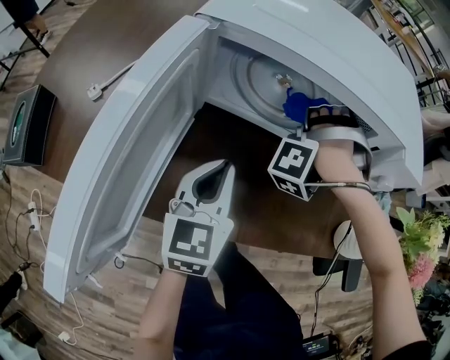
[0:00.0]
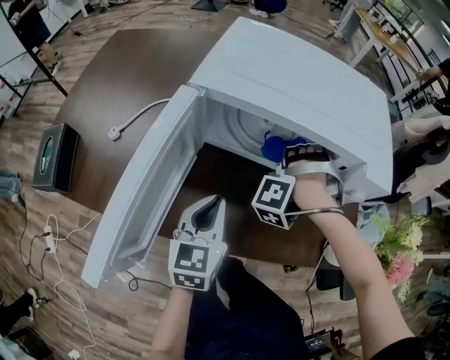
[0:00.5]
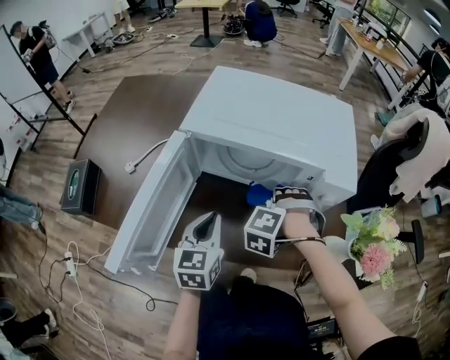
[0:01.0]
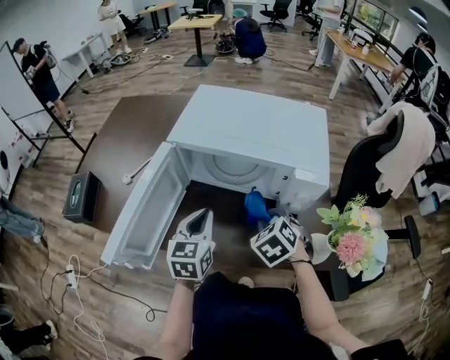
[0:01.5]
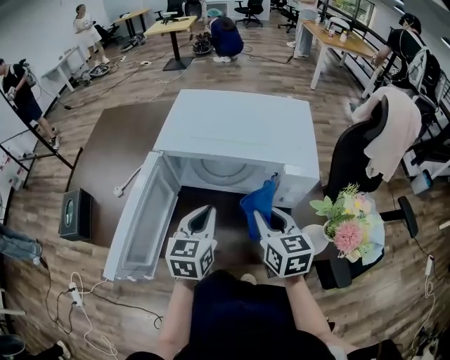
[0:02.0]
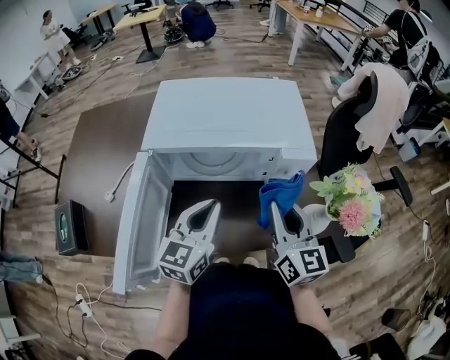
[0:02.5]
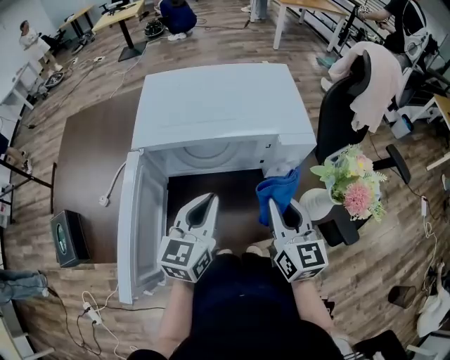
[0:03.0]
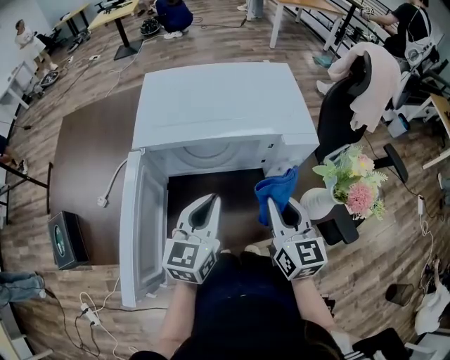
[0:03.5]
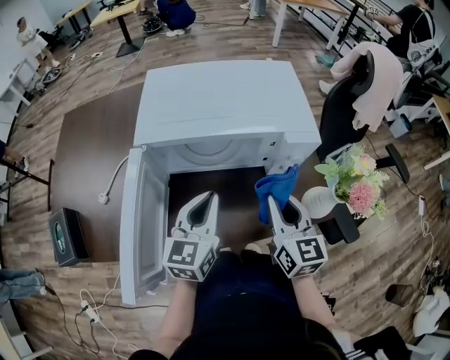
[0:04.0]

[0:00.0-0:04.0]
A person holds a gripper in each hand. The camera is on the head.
0:00.0 to 0:02.0: The left gripper goes approximately 10 cm upward.

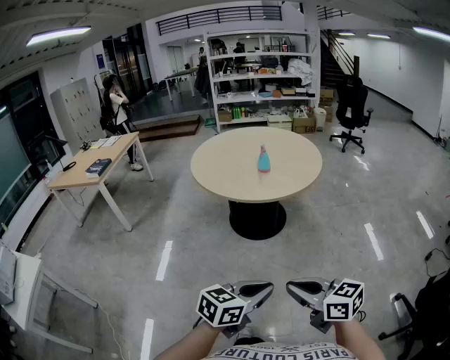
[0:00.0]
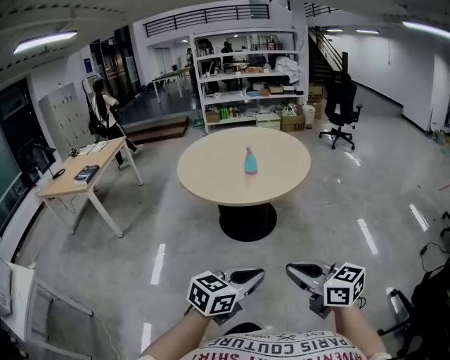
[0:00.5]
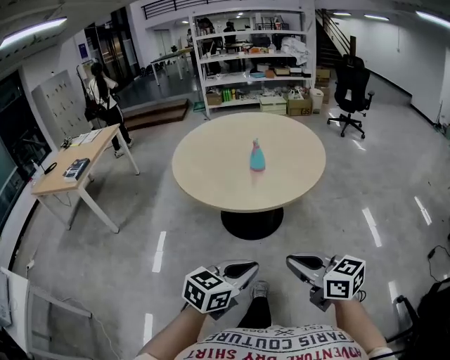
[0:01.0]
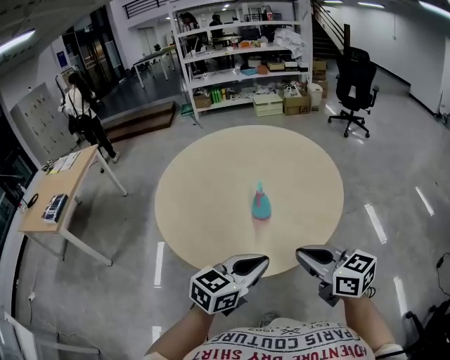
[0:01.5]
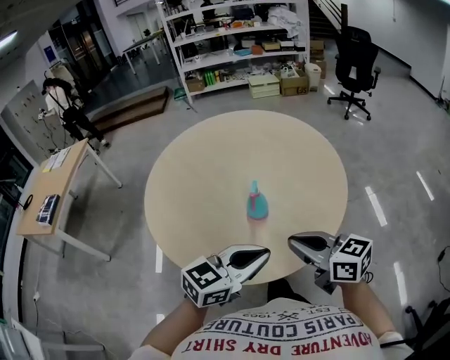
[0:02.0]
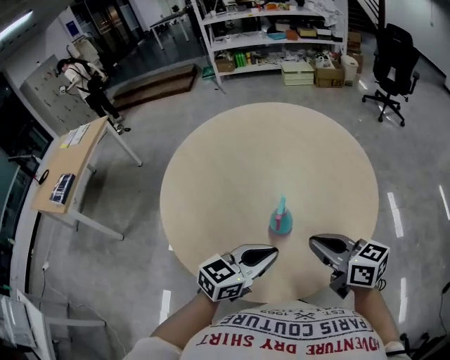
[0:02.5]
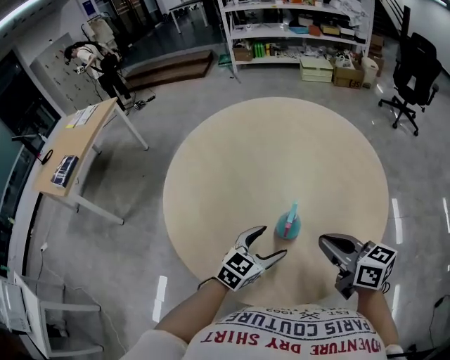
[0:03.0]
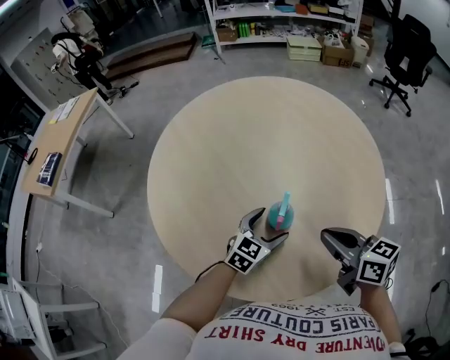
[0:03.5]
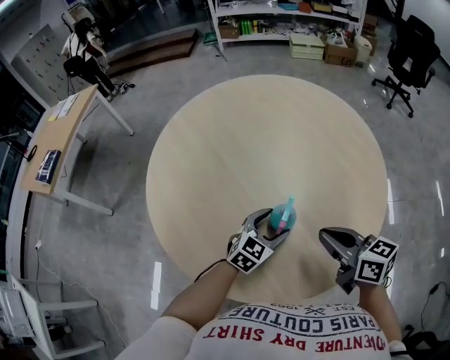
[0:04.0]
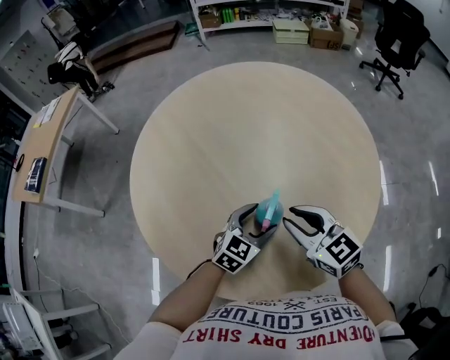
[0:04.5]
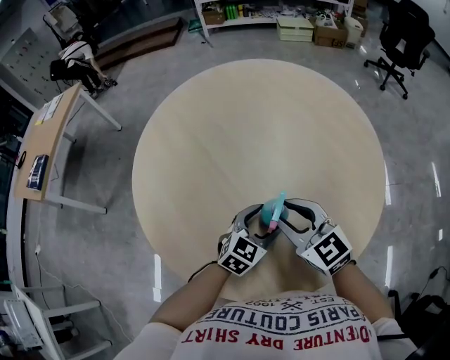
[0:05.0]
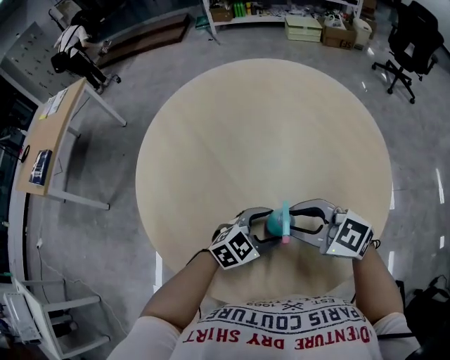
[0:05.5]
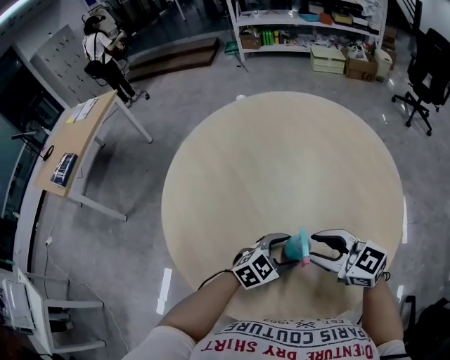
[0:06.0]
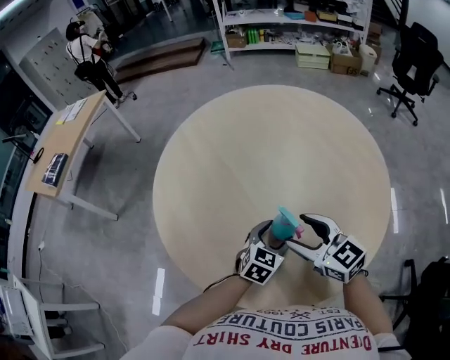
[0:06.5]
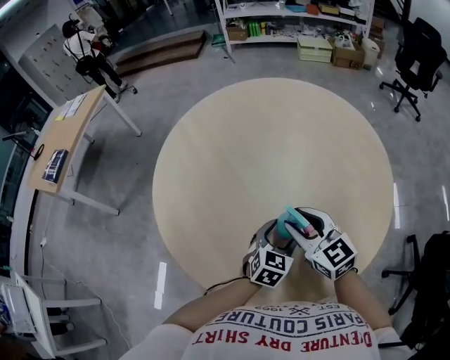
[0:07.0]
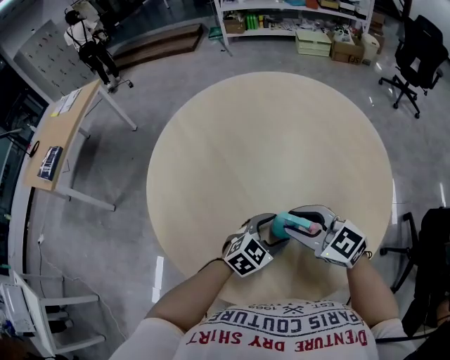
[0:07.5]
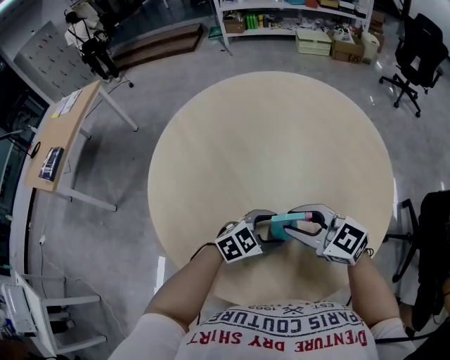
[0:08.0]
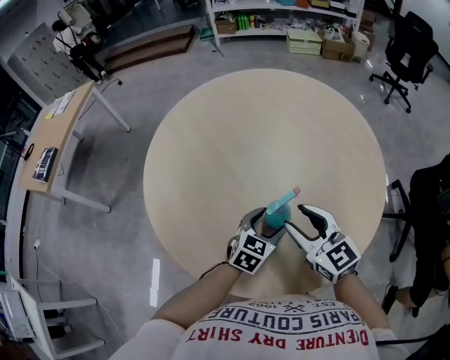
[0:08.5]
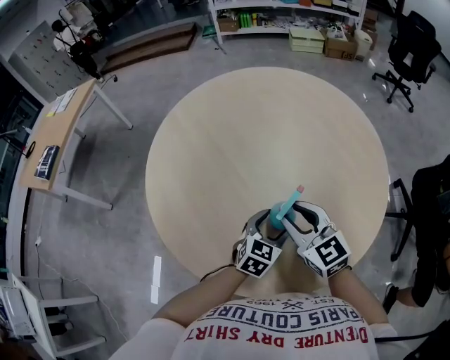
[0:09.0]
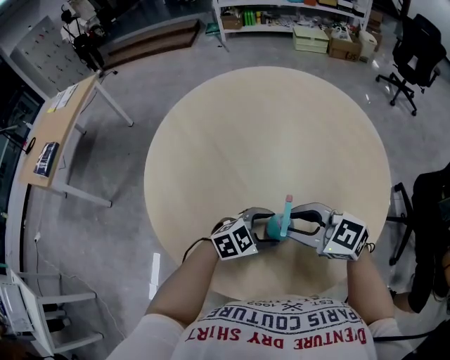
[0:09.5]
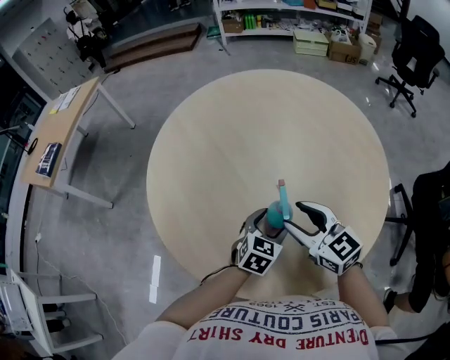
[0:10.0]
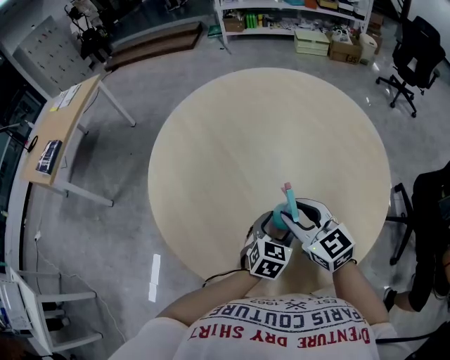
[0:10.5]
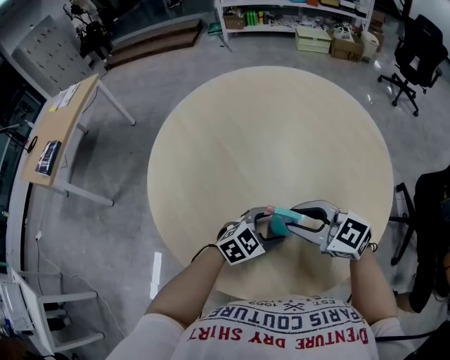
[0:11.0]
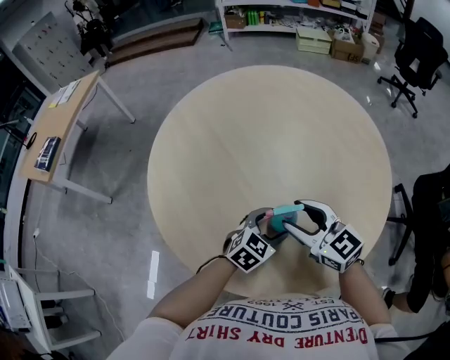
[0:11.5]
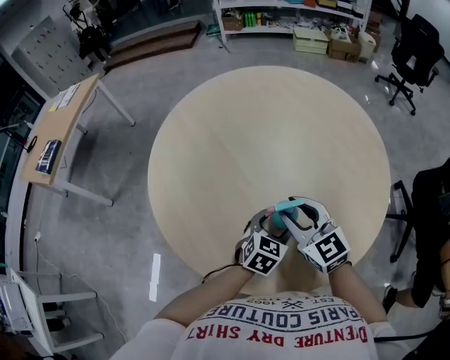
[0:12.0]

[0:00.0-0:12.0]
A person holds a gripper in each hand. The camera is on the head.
0:00.0 to 0:02.0: The pair of grippers is taken forward, about 60 cm.
0:02.0 to 0:04.0: The left gripper is displaced forward and downward by some 30 cm, rotates about 30 degrees, and opens its fingers, while the right gripper heads forward and downward, covering about 15 cm.
0:04.0 to 0:06.0: The right gripper ends up about 10 cm from where it was, swivels about 30 degrees, and opens its fingers.
0:06.0 to 0:08.0: The right gripper opens, then closes again.
0:08.0 to 0:10.0: The left gripper changes its angle by about 40 degrees.

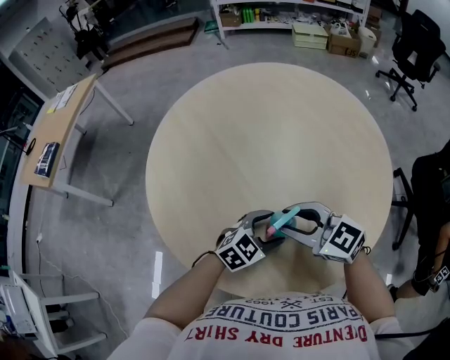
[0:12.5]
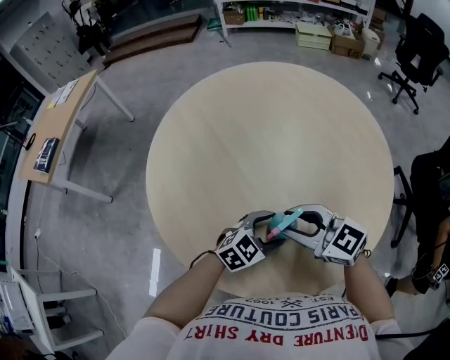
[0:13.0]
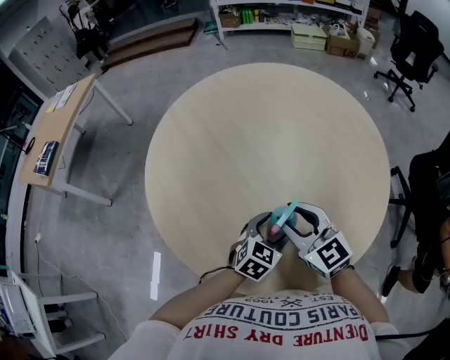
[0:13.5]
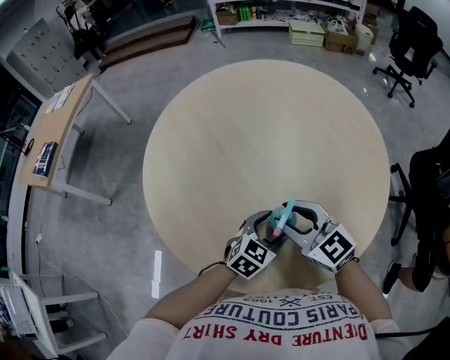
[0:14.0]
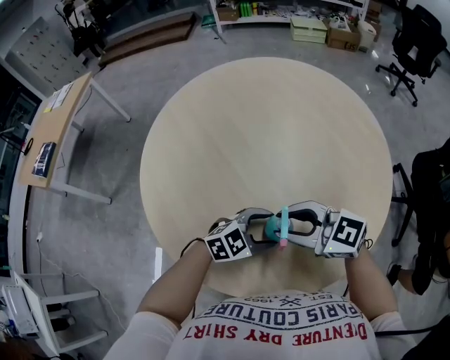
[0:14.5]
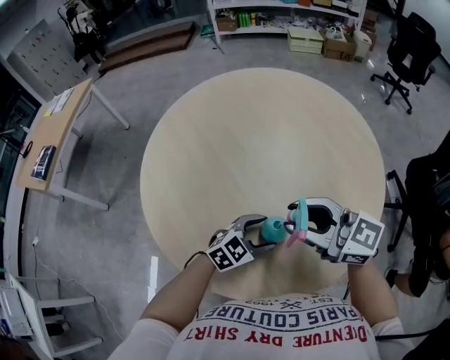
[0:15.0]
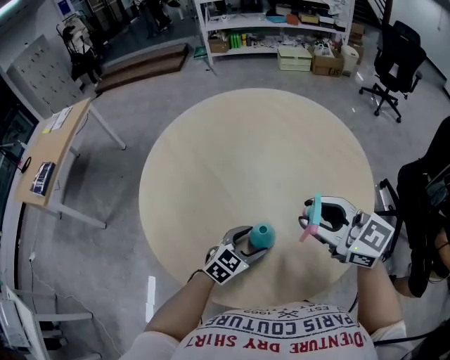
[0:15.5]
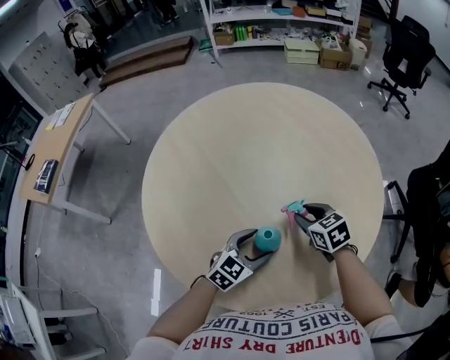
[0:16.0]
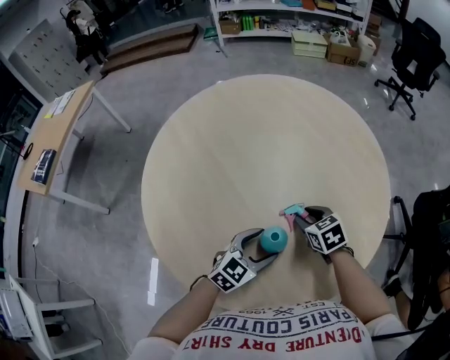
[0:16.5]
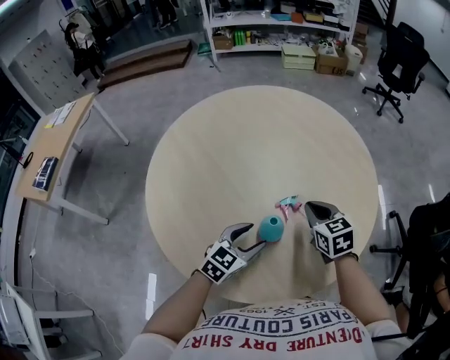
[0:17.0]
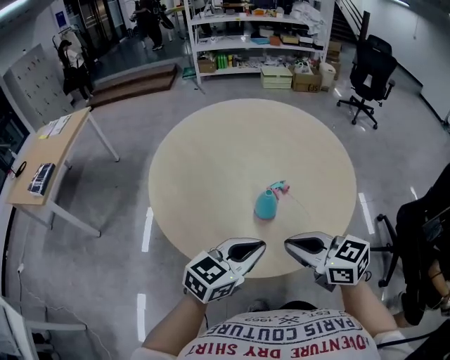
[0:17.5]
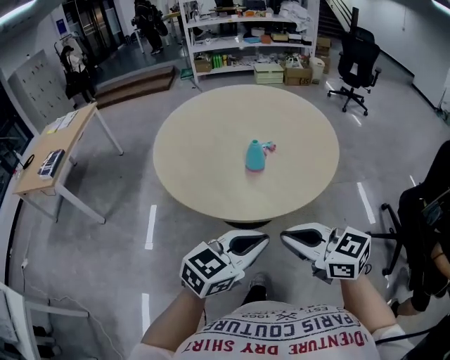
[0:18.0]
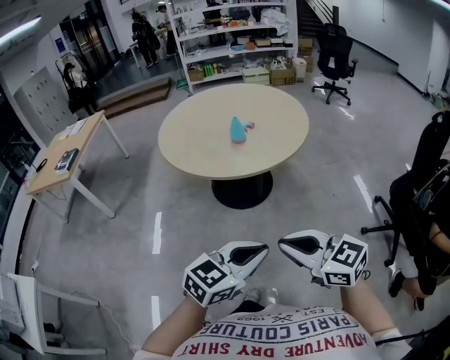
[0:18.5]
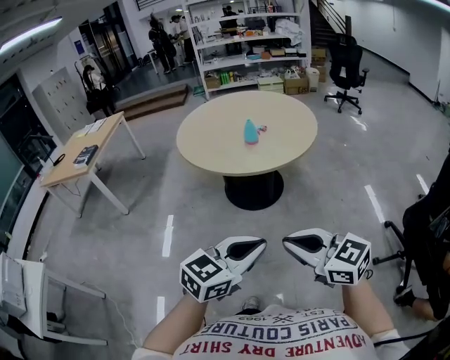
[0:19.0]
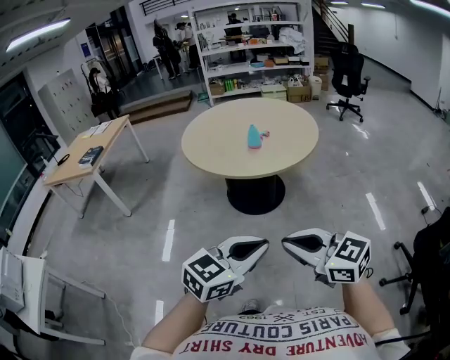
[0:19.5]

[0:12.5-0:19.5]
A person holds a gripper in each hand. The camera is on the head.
0:14.5 to 0:16.0: The right gripper ends up some 20 cm from where it was, and changes its angle by roughly 50 degrees. Meanwhile the left gripper changes its angle by approximately 30 degrees.
0:16.0 to 0:17.5: The left gripper travels upward and backward by roughly 25 cm, turns by some 20 degrees, and closes. The right gripper heads backward and upward, covering roughly 30 cm, rotates some 30 degrees, and closes.
0:17.5 to 0:19.5: The pair of grippers is taken backward, roughly 60 cm.

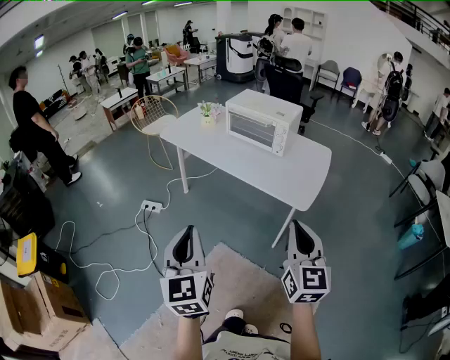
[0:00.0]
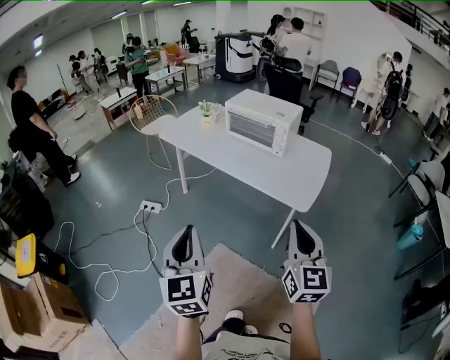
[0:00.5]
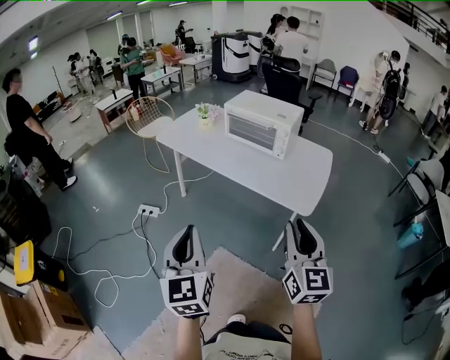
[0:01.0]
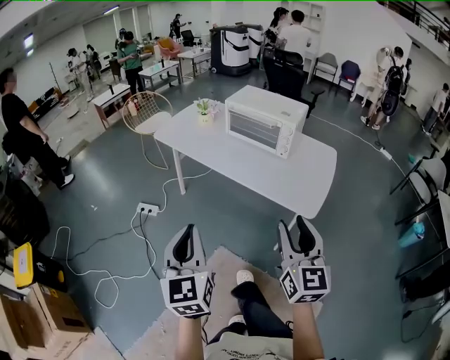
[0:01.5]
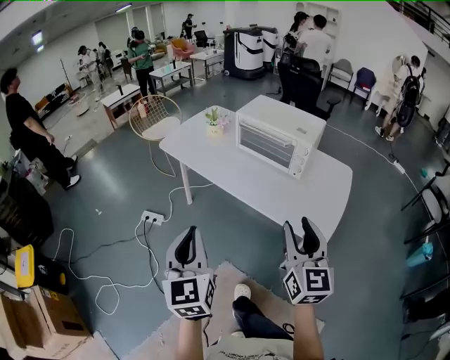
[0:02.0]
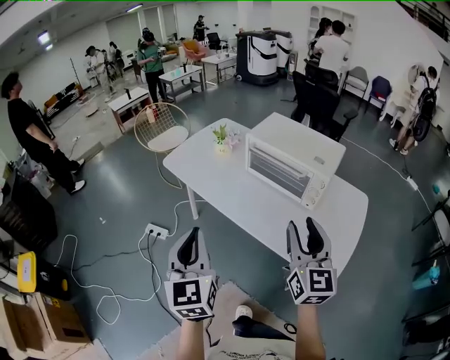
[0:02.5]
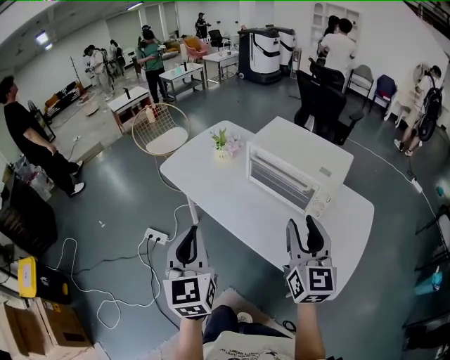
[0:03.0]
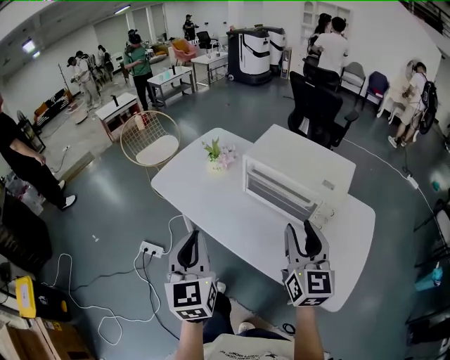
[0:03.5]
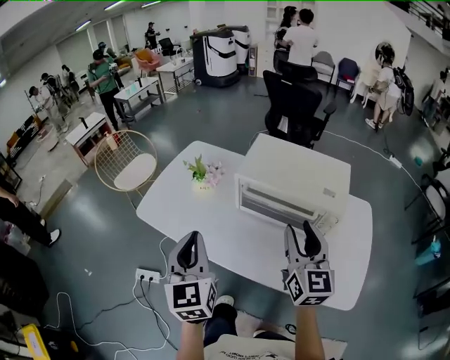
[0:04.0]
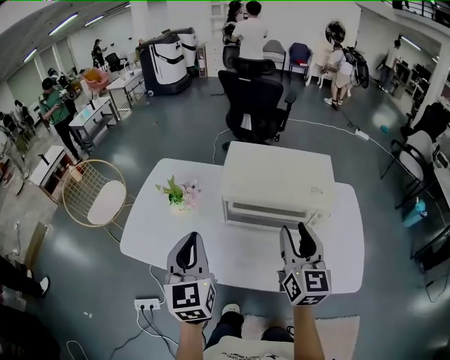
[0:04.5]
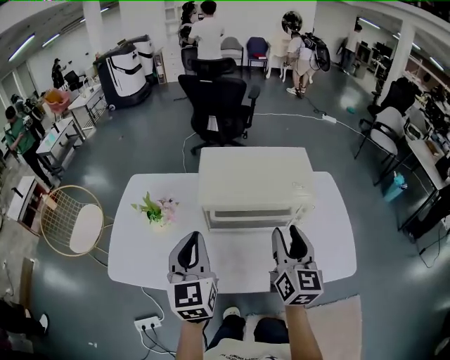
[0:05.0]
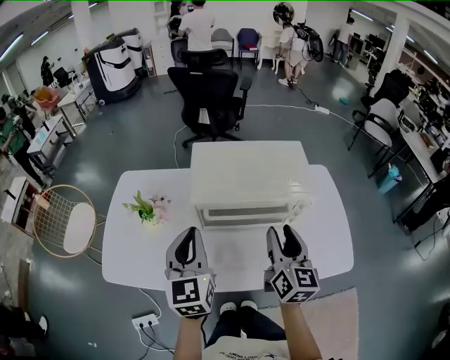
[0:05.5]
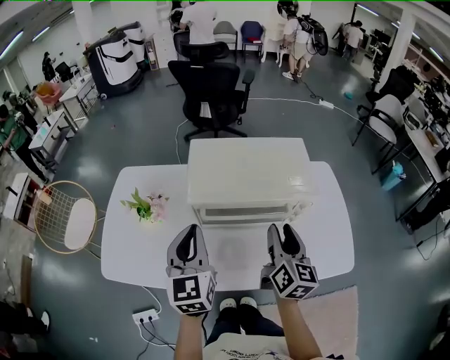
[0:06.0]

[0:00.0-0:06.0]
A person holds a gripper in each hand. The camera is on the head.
0:00.0 to 0:02.0: The two grippers go approximately 25 cm forward. The right gripper opens.
0:02.0 to 0:04.0: Both grippers are carried forward, about 40 cm.
0:04.0 to 0:06.0: The left gripper ends up about 20 cm from where it was, and swivels roughly 30 degrees. The right gripper travels downward by some 10 cm, and turns by about 40 degrees.
